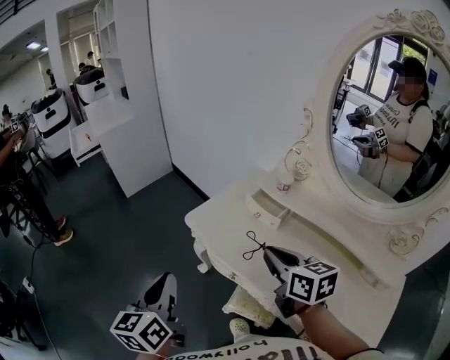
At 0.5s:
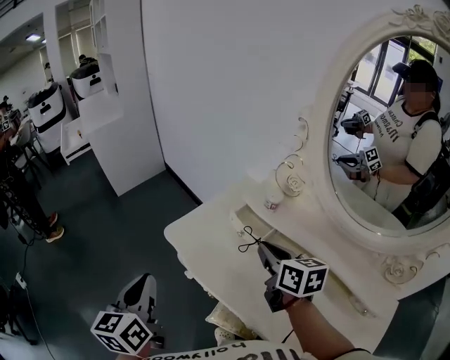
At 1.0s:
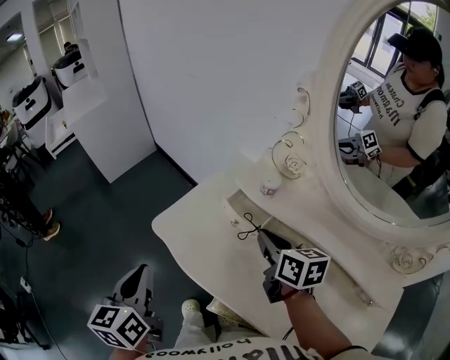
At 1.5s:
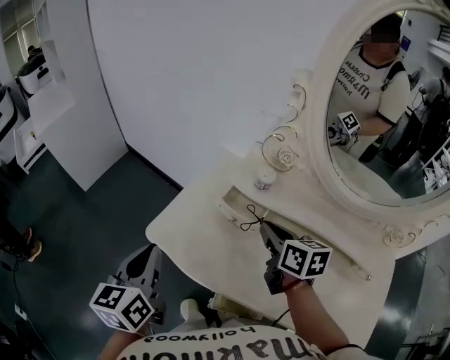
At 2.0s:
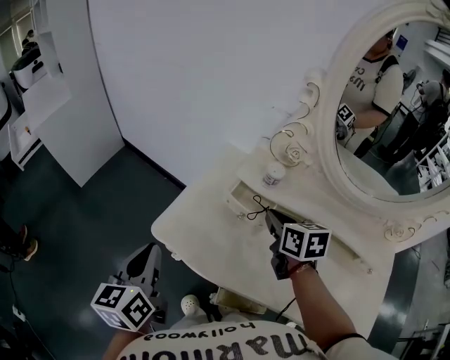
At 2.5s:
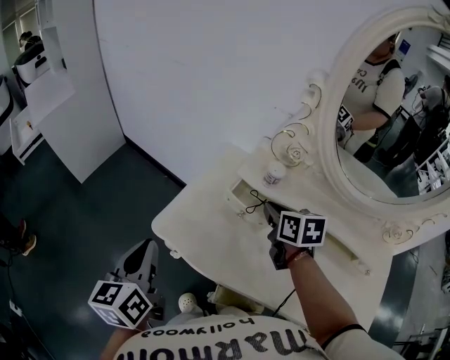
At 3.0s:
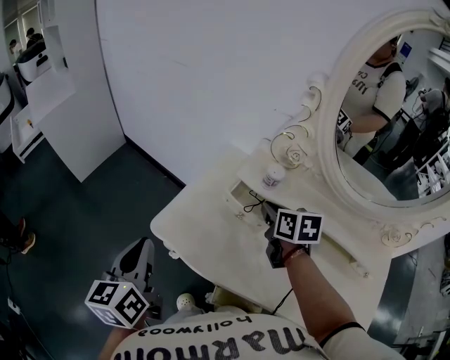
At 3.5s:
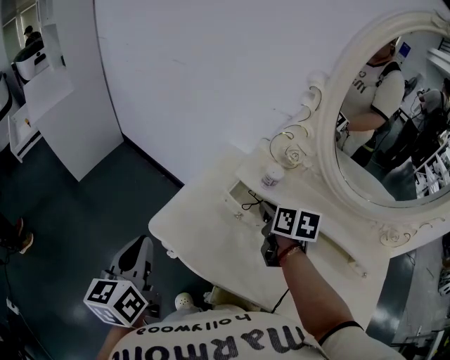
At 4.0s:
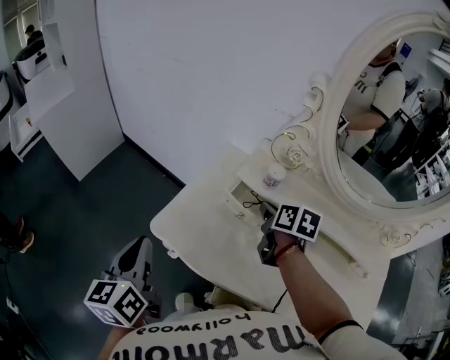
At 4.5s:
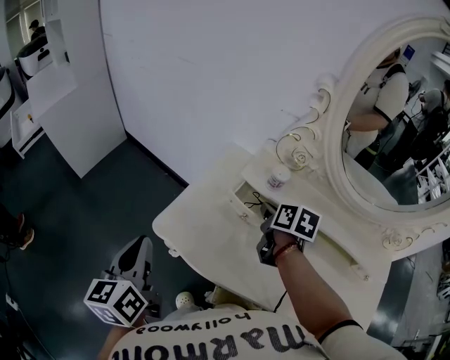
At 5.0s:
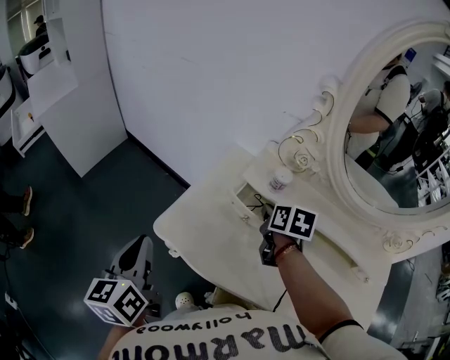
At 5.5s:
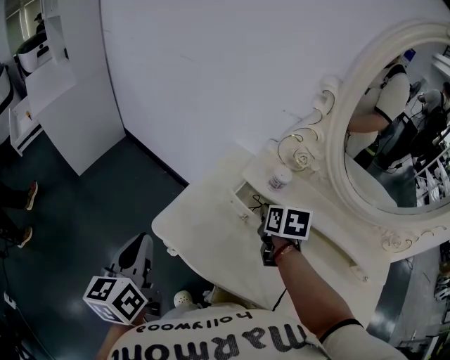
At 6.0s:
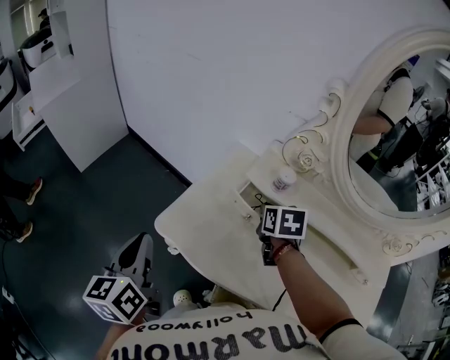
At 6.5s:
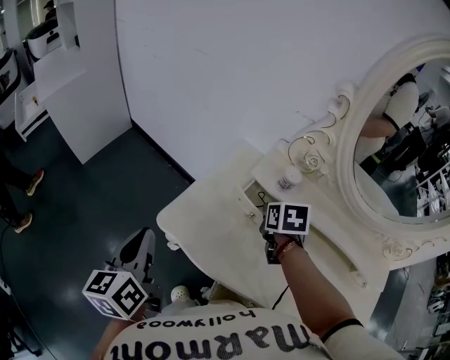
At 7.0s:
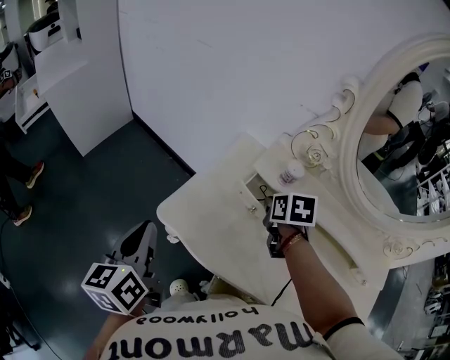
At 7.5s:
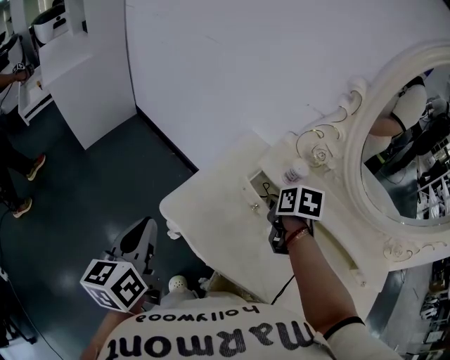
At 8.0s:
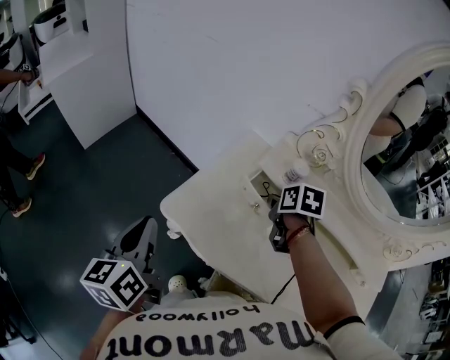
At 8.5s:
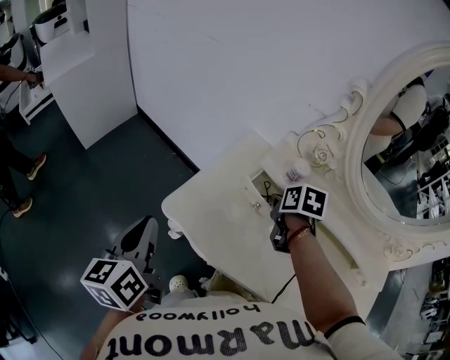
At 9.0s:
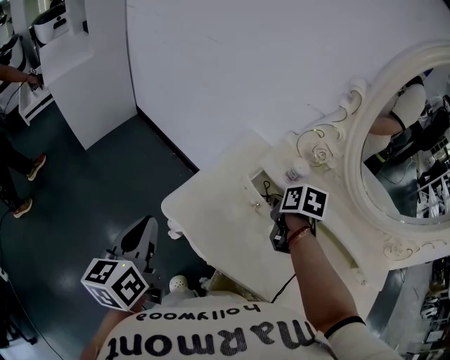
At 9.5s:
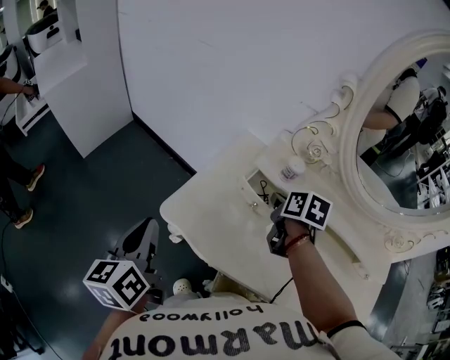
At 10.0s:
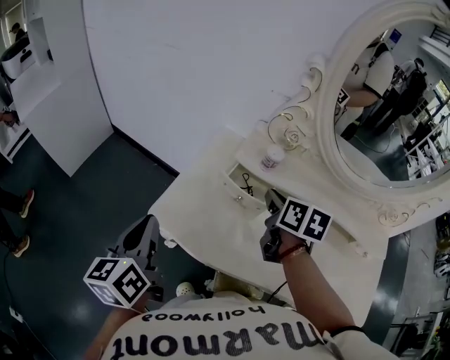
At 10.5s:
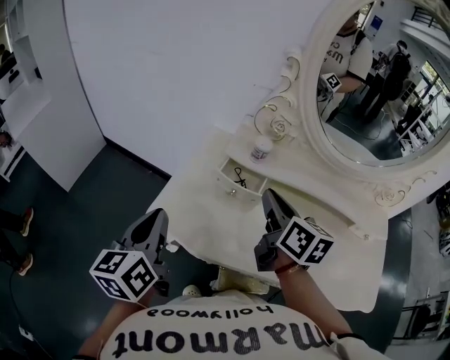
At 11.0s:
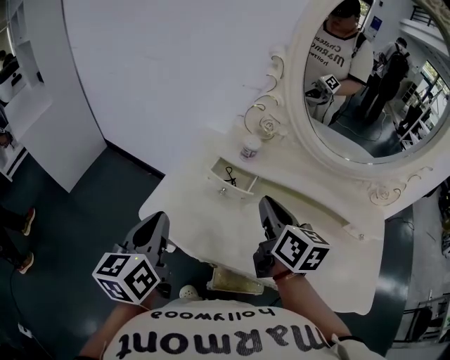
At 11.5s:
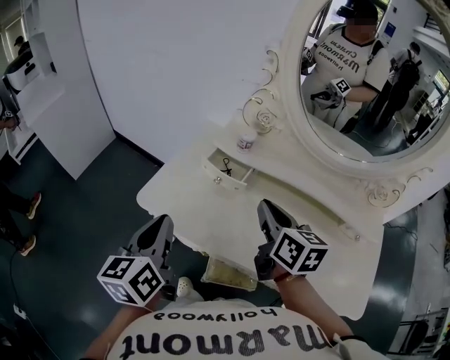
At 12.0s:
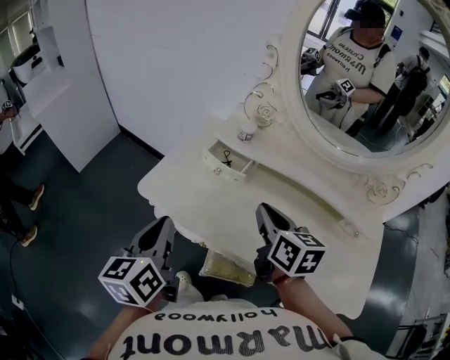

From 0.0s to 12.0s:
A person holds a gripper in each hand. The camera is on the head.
From 0.0s to 2.0s: The right gripper travels forward, to the right and downward by roughly 20 cm, and swivels roughly 30 degrees; the left gripper is displaced forward by approximately 20 cm.
From 2.0s to 4.0s: The grippers make only small movements.
From 4.0s to 6.0s: The right gripper swivels some 20 degrees.
From 6.0s to 8.0s: The grippers stay close to where they were, moving slightly.
From 8.0s to 10.0s: The right gripper moves upward, about 5 cm, and rotates some 30 degrees.
From 10.0s to 12.0s: The left gripper travels to the right and backward by approximately 15 cm. Meanwhile the right gripper is displaced backward by some 15 cm.

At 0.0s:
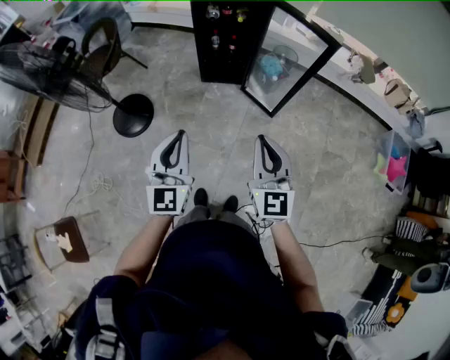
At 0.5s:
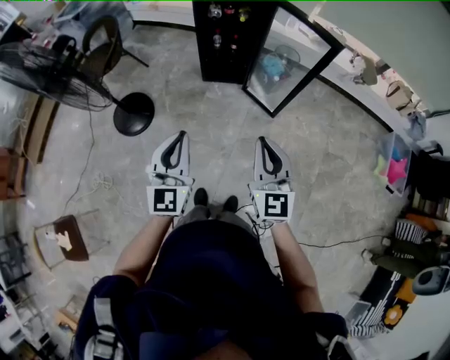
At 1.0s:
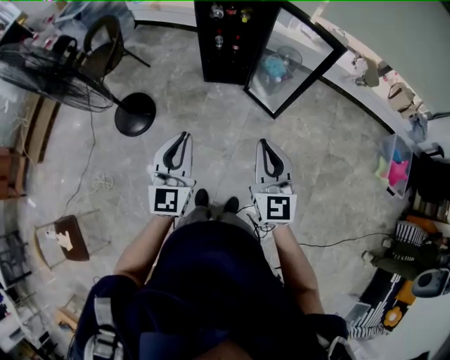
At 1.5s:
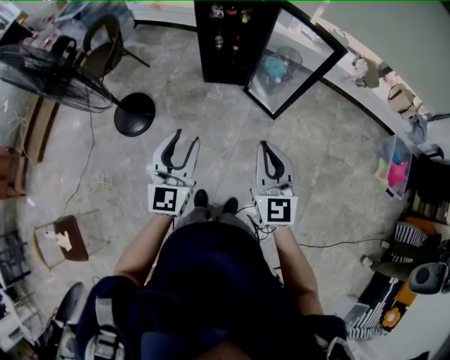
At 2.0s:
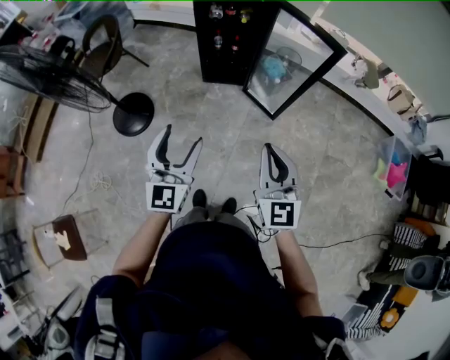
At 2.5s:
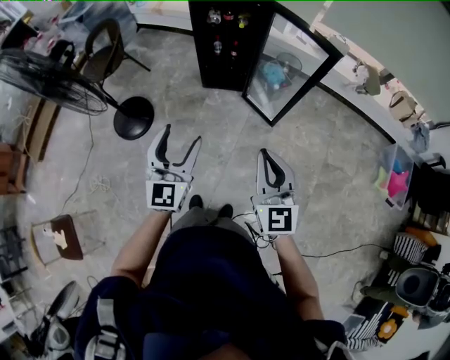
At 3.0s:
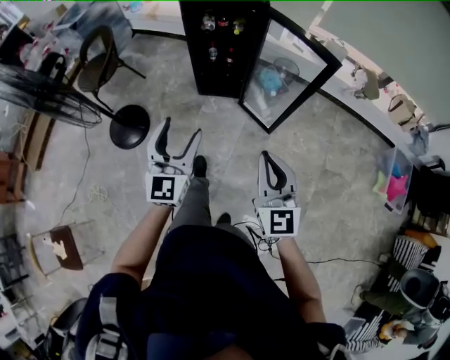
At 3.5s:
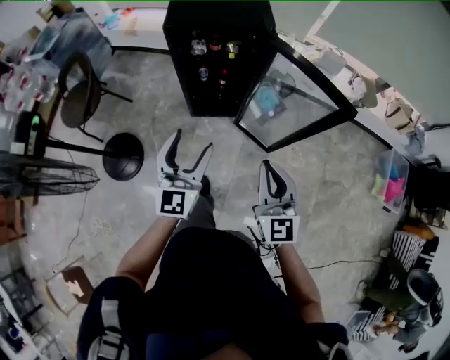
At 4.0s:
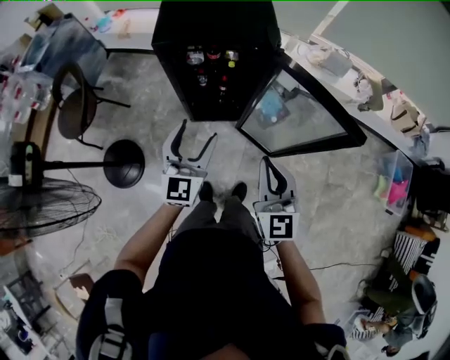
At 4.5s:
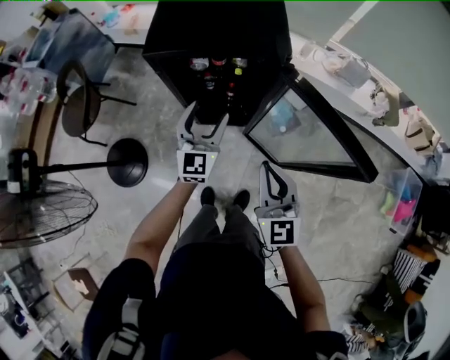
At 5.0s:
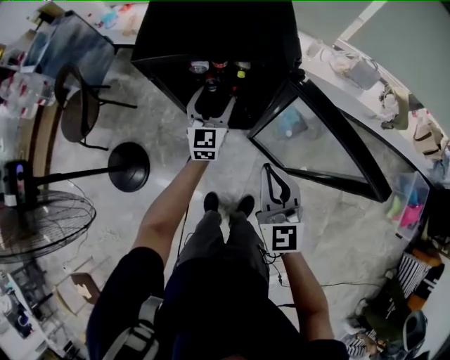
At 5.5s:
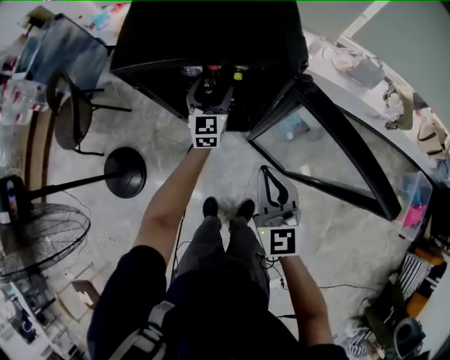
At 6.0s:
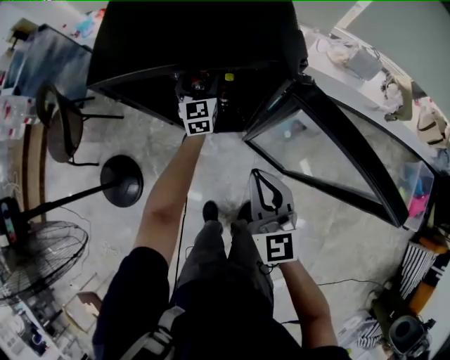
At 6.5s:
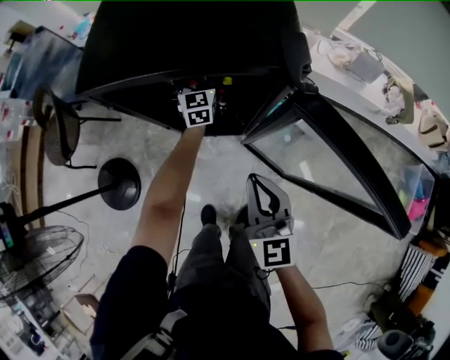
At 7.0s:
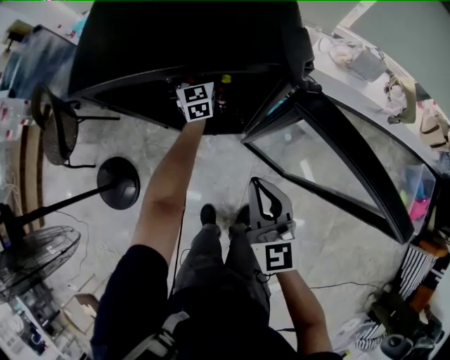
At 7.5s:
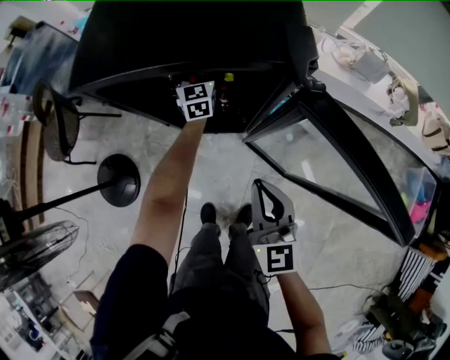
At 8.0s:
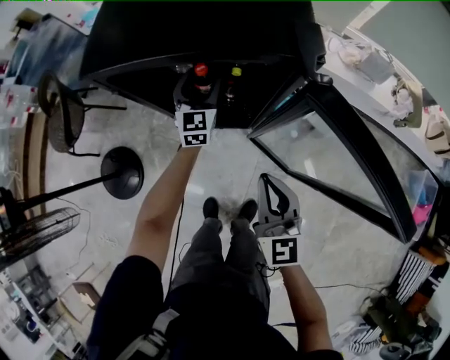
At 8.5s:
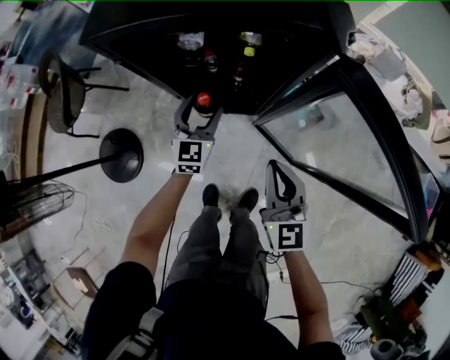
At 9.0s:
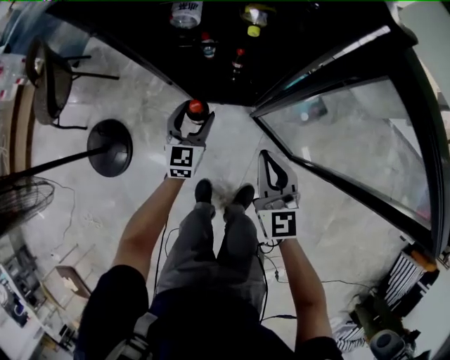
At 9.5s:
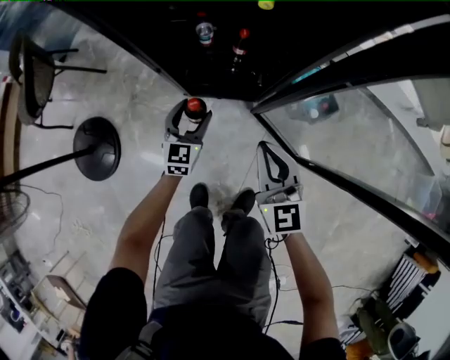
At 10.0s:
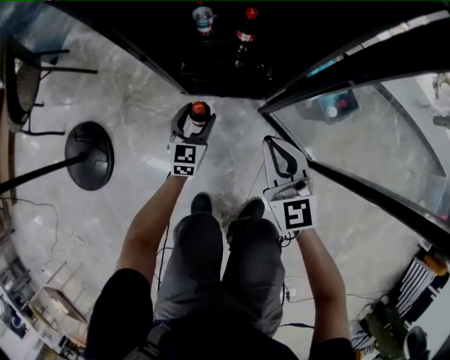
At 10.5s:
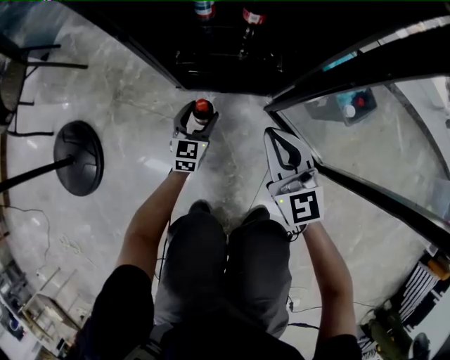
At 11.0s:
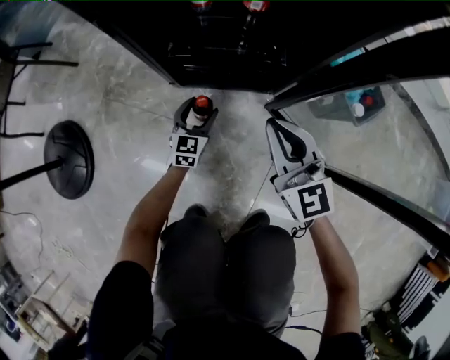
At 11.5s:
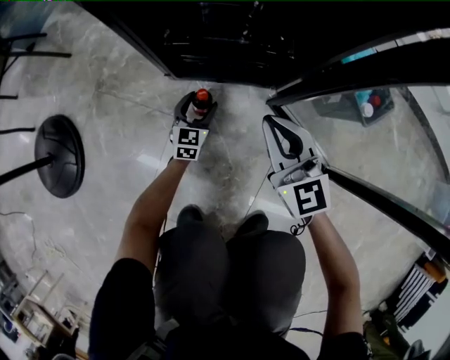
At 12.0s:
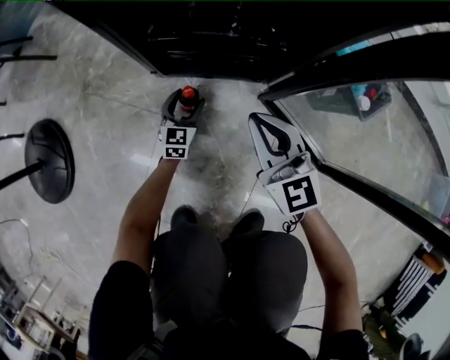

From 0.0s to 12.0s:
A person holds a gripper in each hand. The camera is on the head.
From 0.0s to 2.0s: The left gripper opens up.
From 2.0s to 4.0s: The pair of grippers is taken forward, some 50 cm.
From 4.0s to 6.0s: The left gripper heads forward and downward, covering approximately 50 cm, while the right gripper moves forward and downward, some 25 cm.
From 8.0s to 10.0s: Both grippers travel together downward, some 50 cm.
From 10.0s to 12.0s: Both grippers move downward, approximately 25 cm.

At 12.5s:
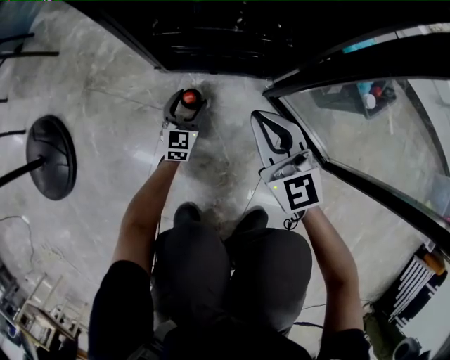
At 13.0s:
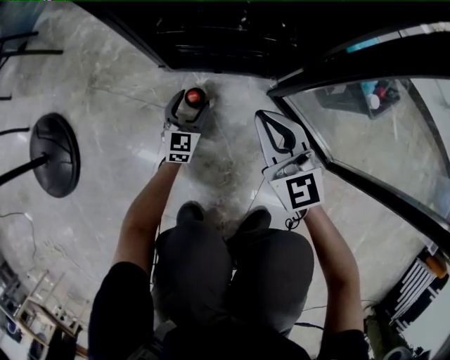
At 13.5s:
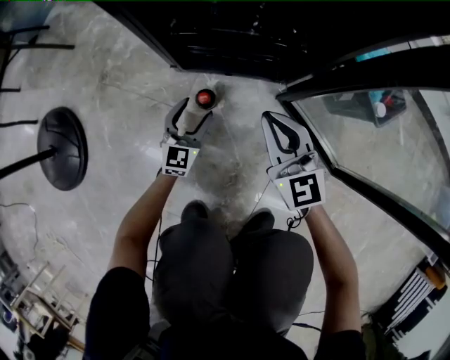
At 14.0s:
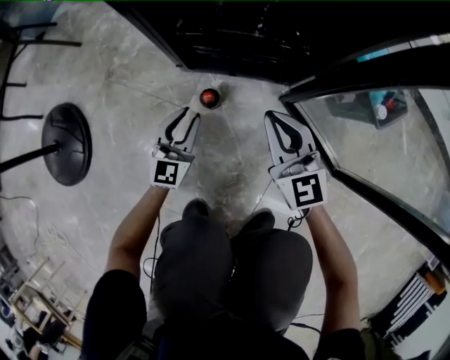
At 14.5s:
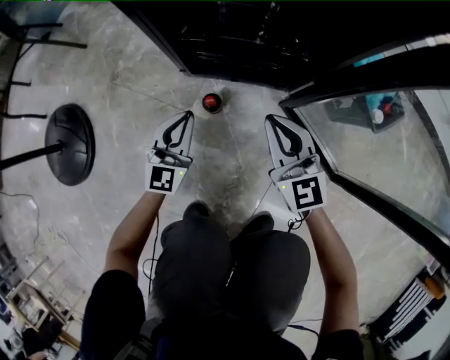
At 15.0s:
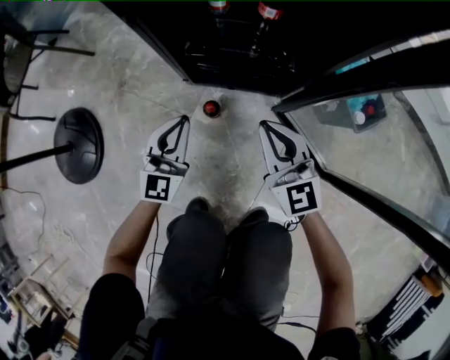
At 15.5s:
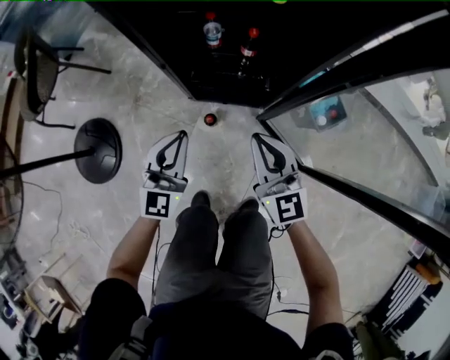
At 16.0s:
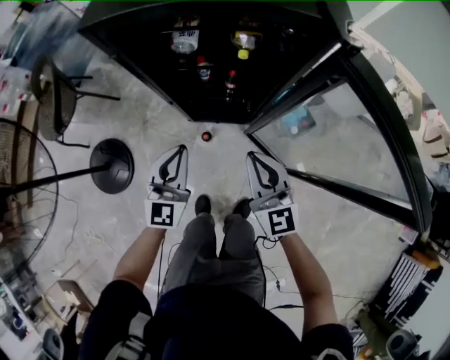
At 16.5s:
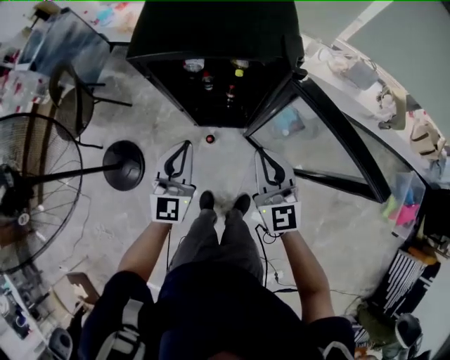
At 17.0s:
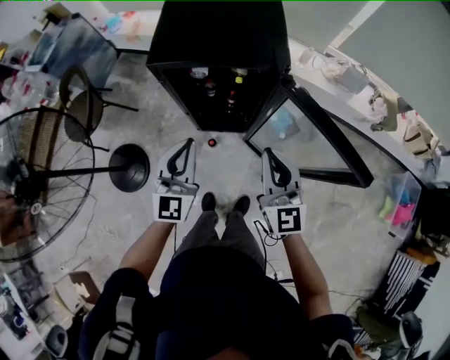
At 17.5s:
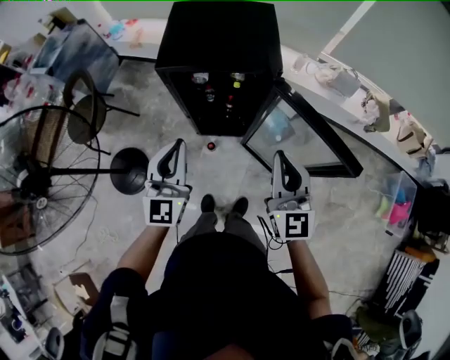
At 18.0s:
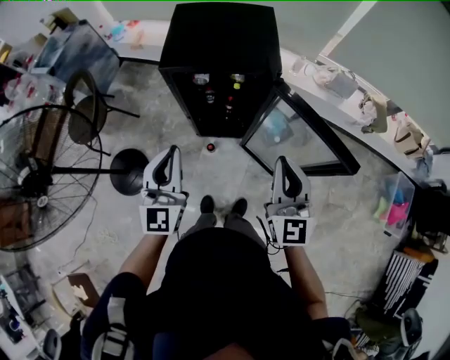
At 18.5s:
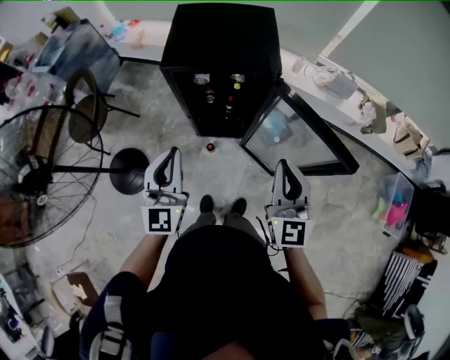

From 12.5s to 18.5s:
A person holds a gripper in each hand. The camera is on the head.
From 12.5s to 14.5s: The left gripper is displaced upward by some 20 cm, and closes its fingers.
From 14.5s to 16.5s: Both grippers move upward, roughly 80 cm.
From 16.5s to 18.5s: Both grippers travel together upward and backward, about 25 cm.
